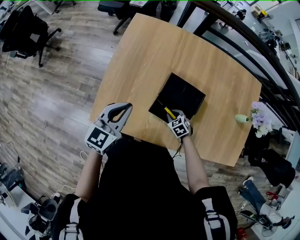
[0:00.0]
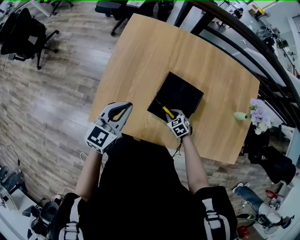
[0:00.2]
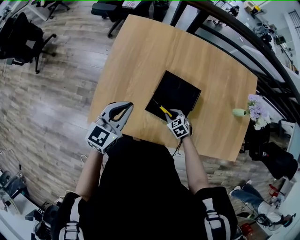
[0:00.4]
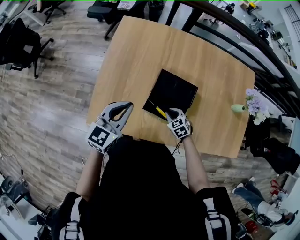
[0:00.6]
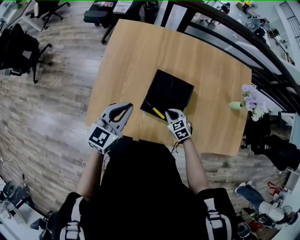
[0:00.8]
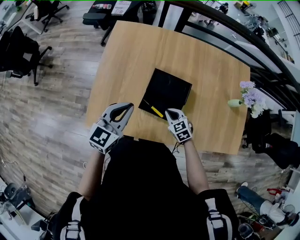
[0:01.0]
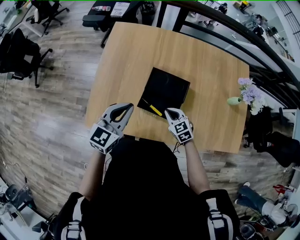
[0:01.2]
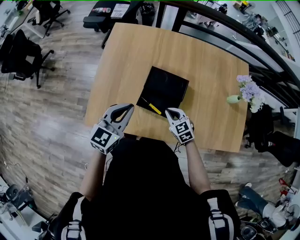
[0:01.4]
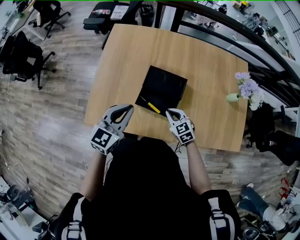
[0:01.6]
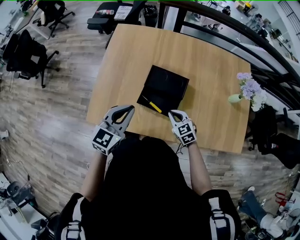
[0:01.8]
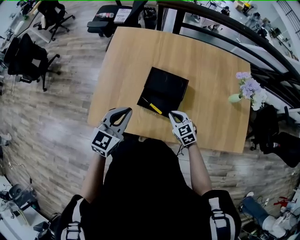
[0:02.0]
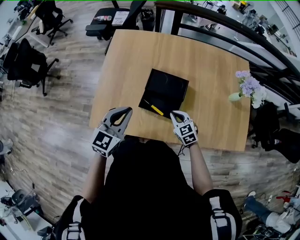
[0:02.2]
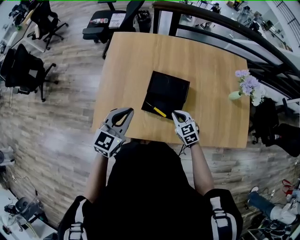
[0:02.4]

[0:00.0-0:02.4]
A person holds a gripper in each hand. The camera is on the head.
0:00.0 to 0:01.2: The right gripper goes roughly 10 cm upward, and turns by about 20 degrees. Meanwhile the left gripper heads to the right, covering roughly 10 cm.
0:01.2 to 0:02.4: The grippers move only a little.

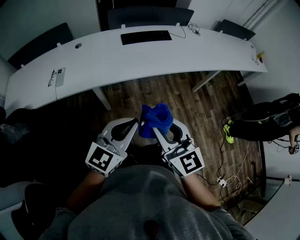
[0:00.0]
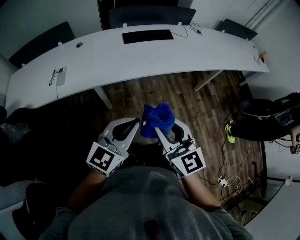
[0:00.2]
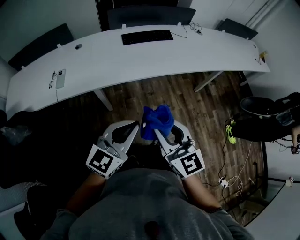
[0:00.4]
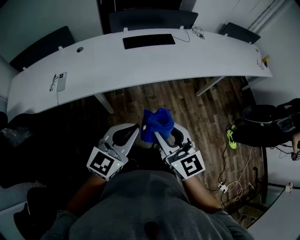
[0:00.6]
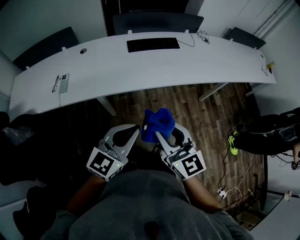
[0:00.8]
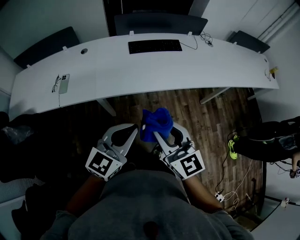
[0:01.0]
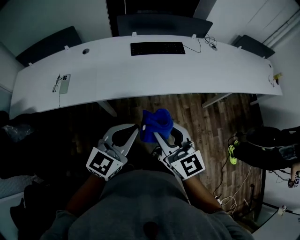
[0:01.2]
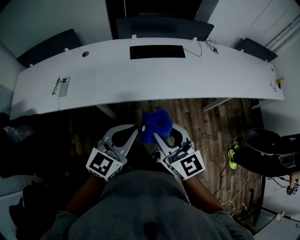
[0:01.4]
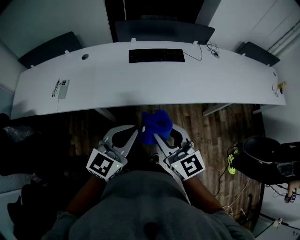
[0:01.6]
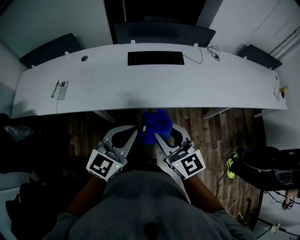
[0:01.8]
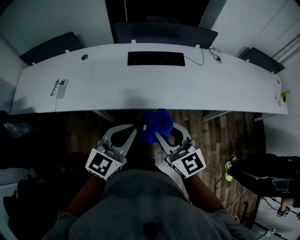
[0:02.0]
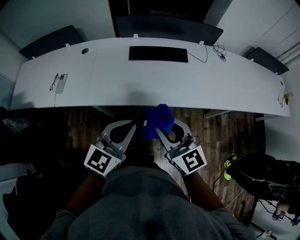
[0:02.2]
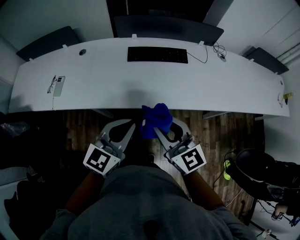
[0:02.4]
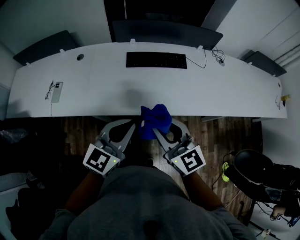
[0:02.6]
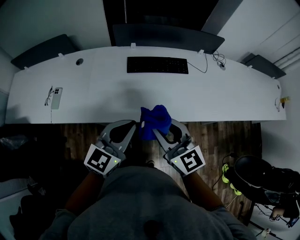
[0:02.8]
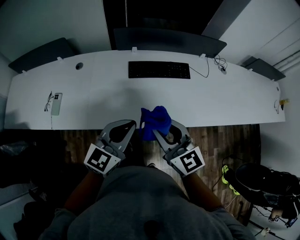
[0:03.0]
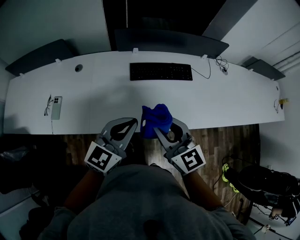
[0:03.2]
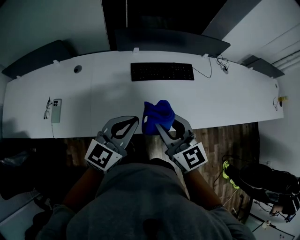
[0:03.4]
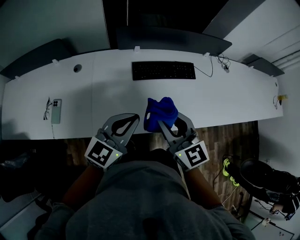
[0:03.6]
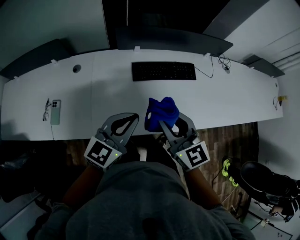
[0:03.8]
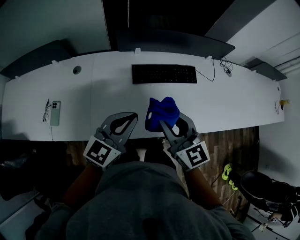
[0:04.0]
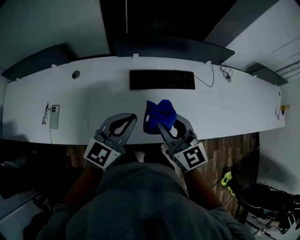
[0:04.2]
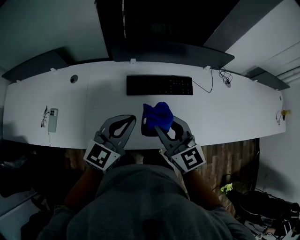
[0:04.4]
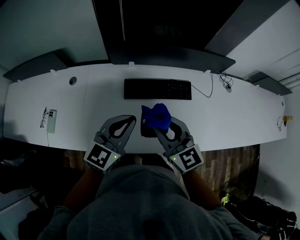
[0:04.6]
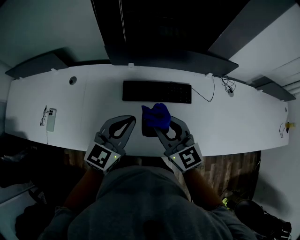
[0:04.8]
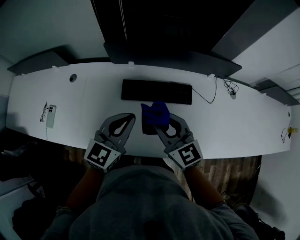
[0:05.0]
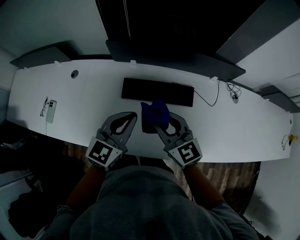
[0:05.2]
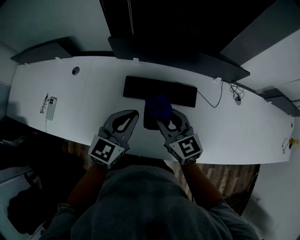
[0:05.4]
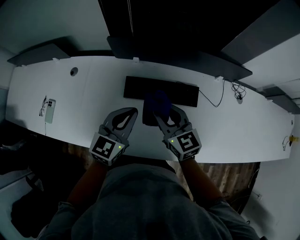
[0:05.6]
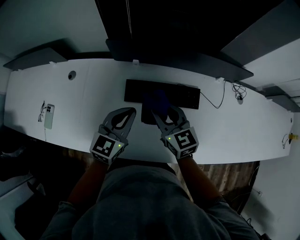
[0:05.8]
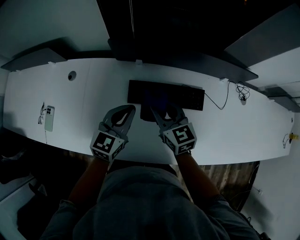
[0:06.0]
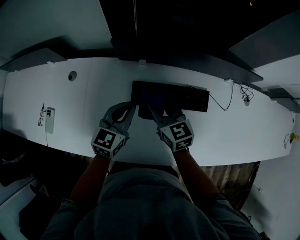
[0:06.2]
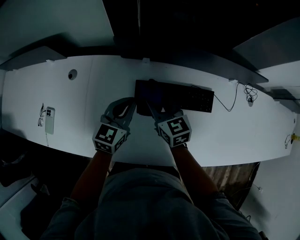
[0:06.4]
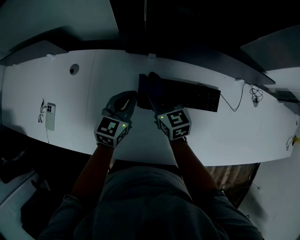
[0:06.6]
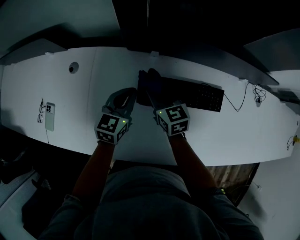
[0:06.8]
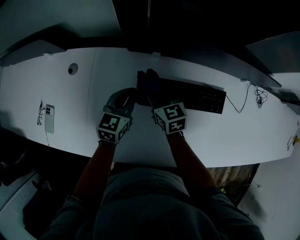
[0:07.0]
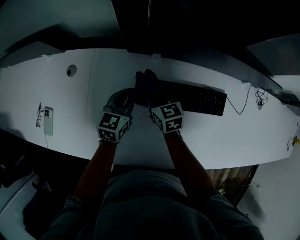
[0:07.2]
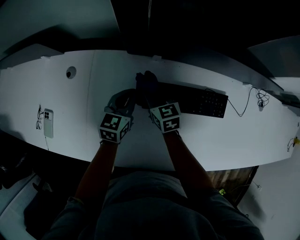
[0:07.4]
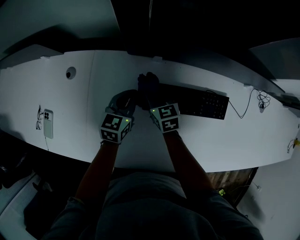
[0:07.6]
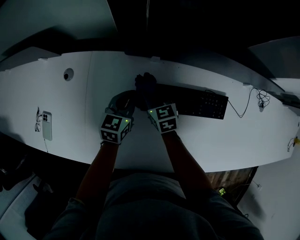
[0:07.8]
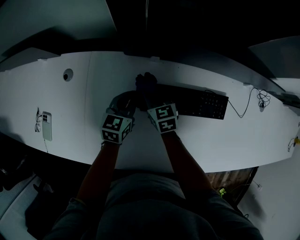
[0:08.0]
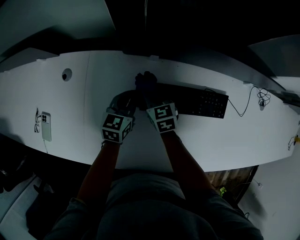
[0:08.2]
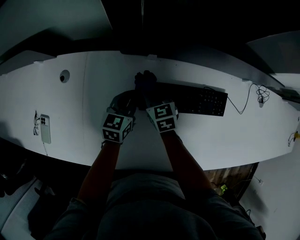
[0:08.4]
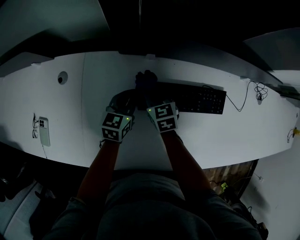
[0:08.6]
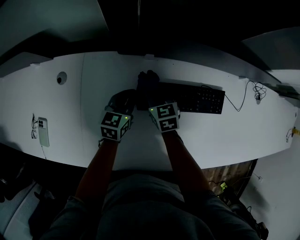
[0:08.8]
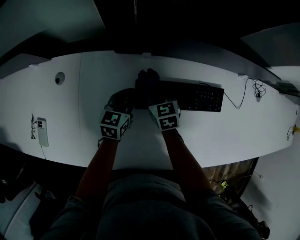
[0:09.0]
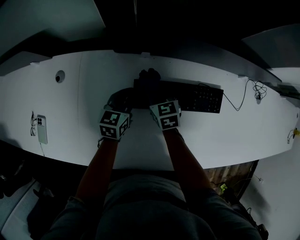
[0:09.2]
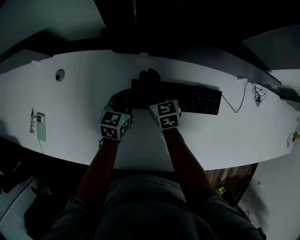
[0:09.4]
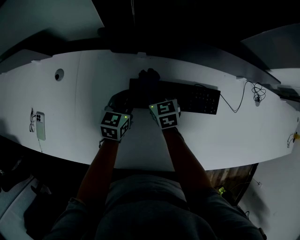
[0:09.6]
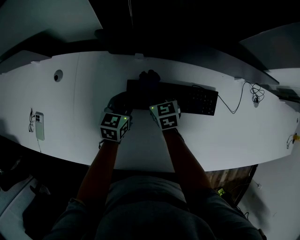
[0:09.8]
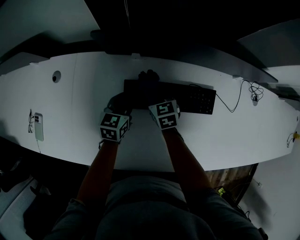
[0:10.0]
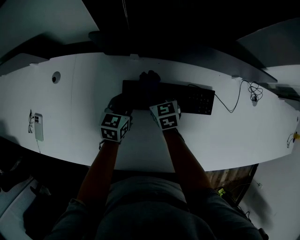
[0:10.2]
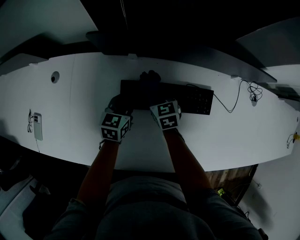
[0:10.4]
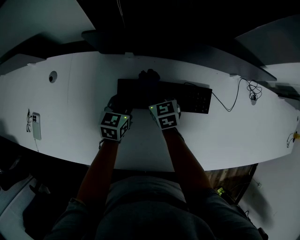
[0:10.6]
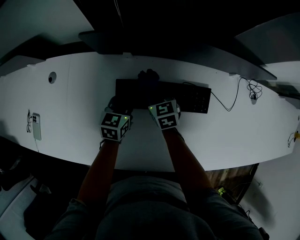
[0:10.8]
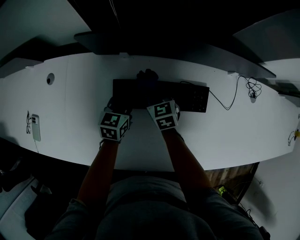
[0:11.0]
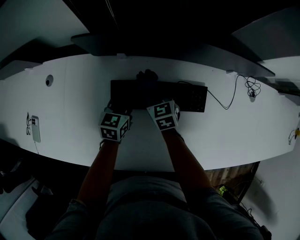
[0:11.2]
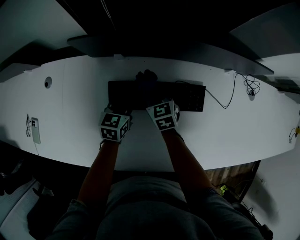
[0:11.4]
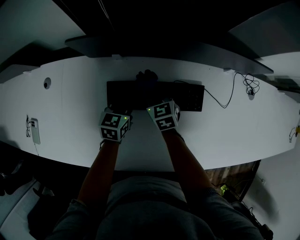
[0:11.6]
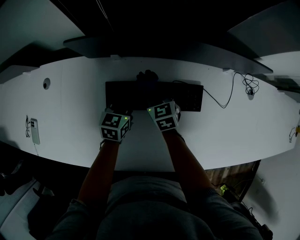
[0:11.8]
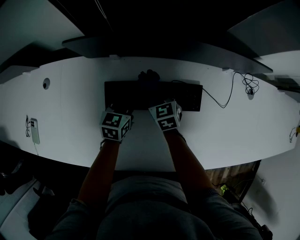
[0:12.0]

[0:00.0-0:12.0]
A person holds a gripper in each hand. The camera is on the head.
0:00.0 to 0:01.6: Both grippers travel together forward, about 20 cm.
0:01.6 to 0:03.0: The two grippers go some 20 cm forward.
0:03.0 to 0:04.4: Both grippers travel together forward, about 15 cm.
0:04.4 to 0:06.0: Both grippers move forward and downward, approximately 20 cm.
0:06.0 to 0:07.6: The two grippers go roughly 25 cm downward, forward and to the left.
0:07.6 to 0:09.0: The grippers make only small movements.
0:09.0 to 0:10.4: Both grippers travel together to the right, roughly 5 cm.
0:10.4 to 0:12.0: Both grippers move to the right, about 5 cm.

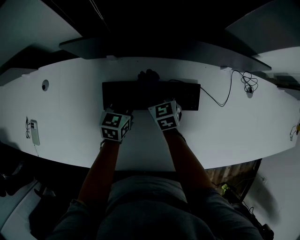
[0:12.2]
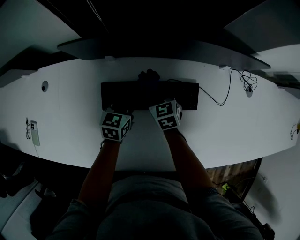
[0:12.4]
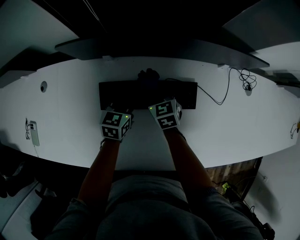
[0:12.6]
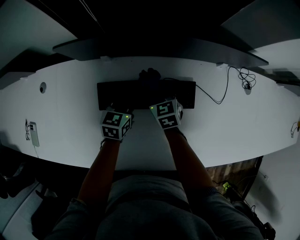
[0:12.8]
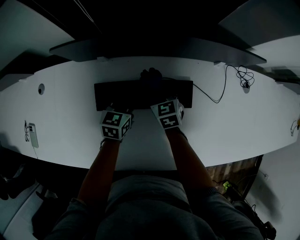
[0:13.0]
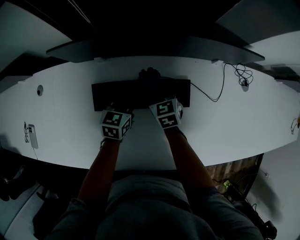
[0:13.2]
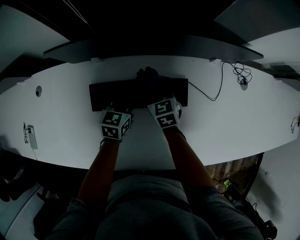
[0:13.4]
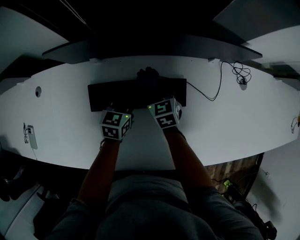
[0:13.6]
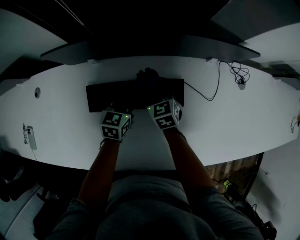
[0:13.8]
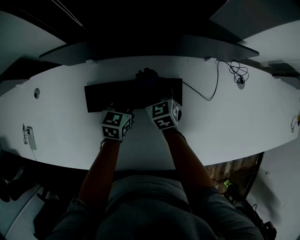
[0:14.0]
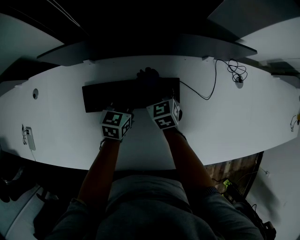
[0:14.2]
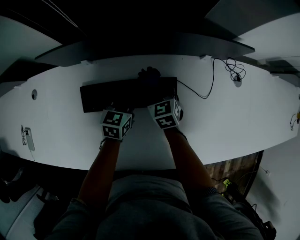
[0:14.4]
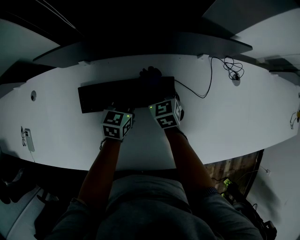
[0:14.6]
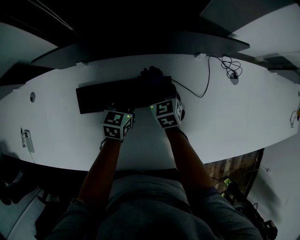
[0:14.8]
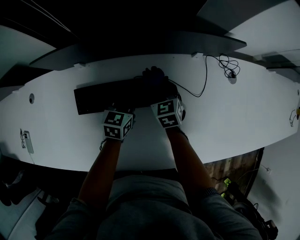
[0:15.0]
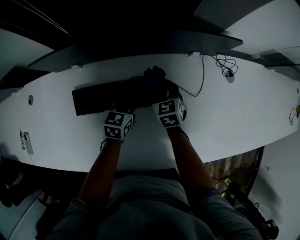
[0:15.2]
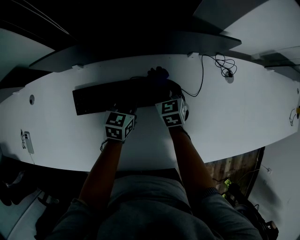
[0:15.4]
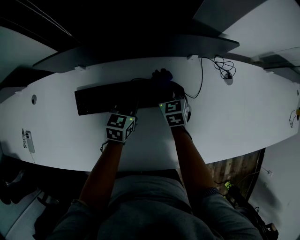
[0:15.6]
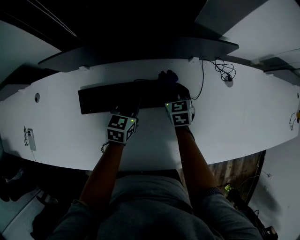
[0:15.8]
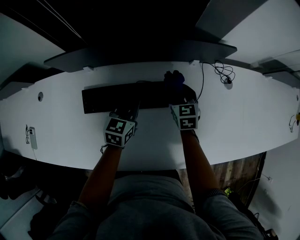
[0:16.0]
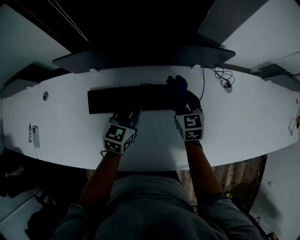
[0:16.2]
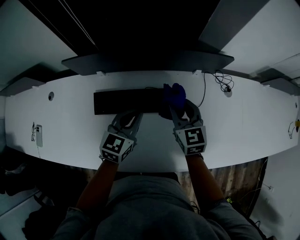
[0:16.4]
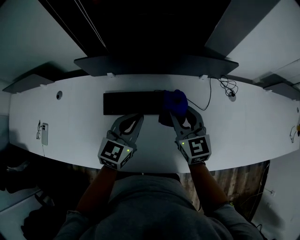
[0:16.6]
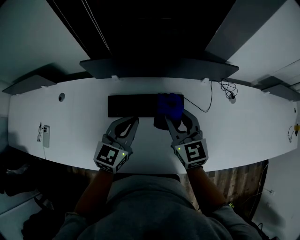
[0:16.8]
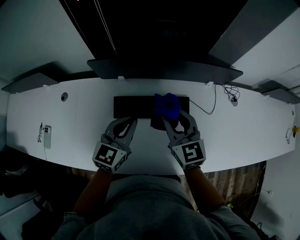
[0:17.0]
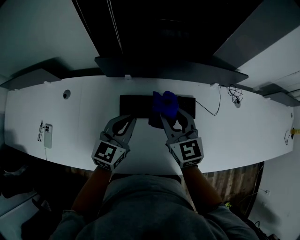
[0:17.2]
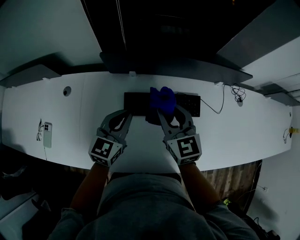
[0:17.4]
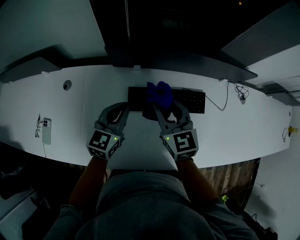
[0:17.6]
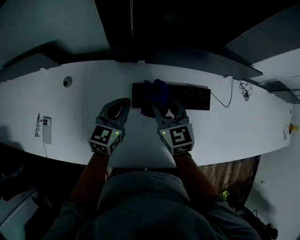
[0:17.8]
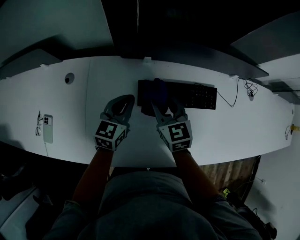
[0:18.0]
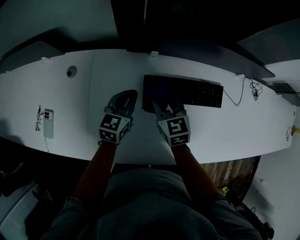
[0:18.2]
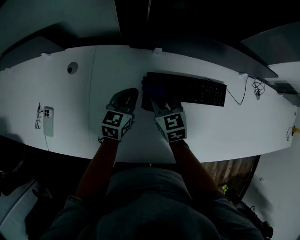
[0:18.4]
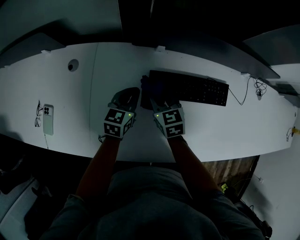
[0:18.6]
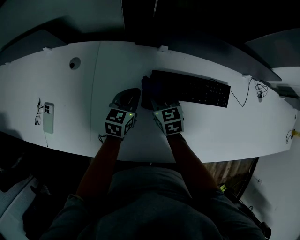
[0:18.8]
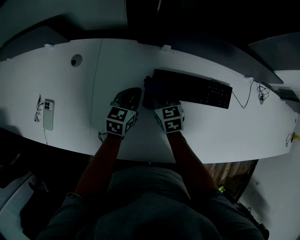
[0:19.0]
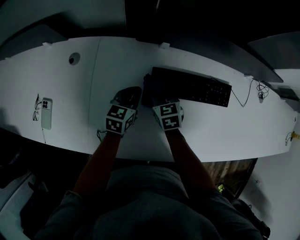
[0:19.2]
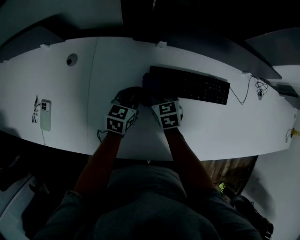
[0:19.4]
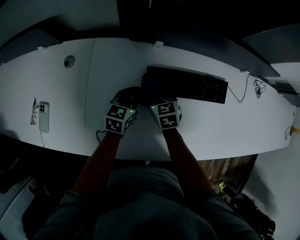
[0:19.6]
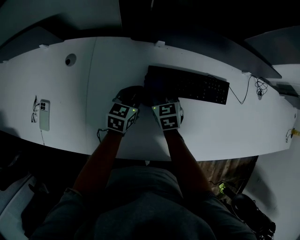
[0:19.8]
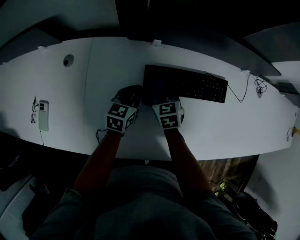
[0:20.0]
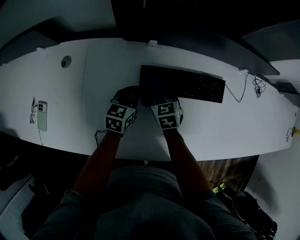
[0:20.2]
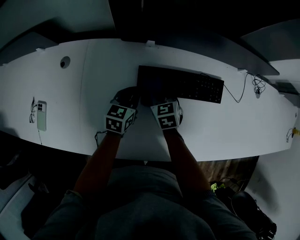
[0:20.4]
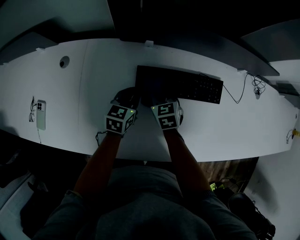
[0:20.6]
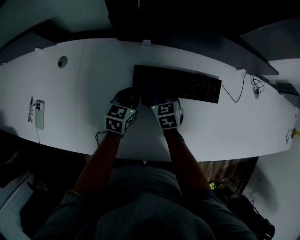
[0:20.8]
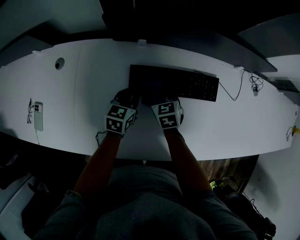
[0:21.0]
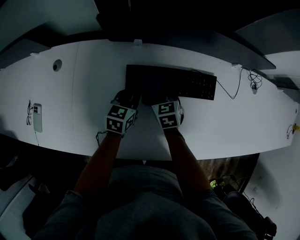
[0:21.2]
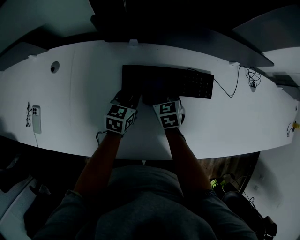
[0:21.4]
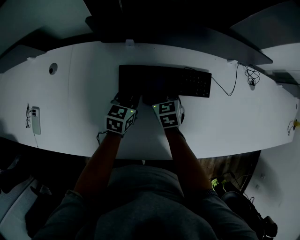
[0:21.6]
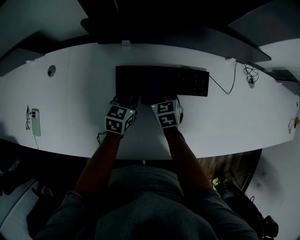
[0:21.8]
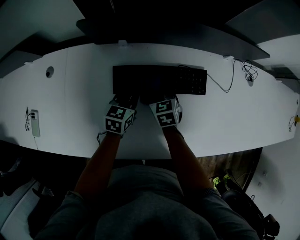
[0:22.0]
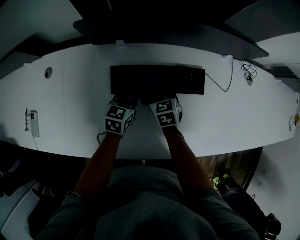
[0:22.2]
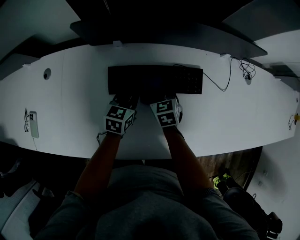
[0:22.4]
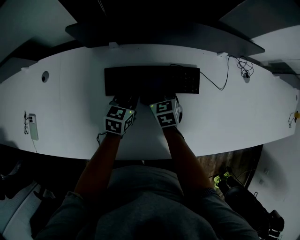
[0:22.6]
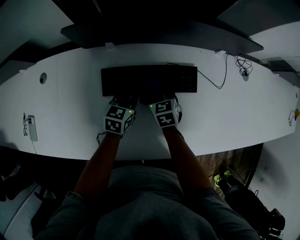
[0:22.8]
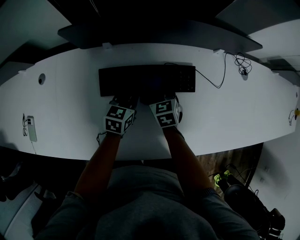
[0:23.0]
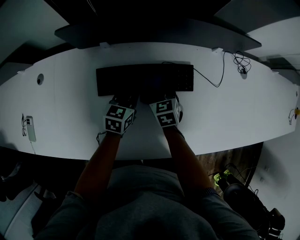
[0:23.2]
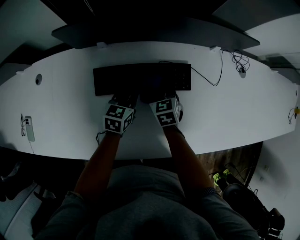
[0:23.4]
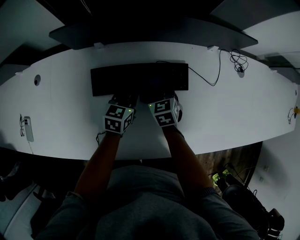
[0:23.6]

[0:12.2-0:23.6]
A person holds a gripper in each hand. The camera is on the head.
0:12.2 to 0:13.6: Both grippers travel together to the right, roughly 5 cm.
0:13.6 to 0:15.0: The grippers both shift to the right by about 10 cm.
0:15.0 to 0:16.4: The left gripper heads upward and backward, covering some 20 cm. Meanwhile the right gripper goes about 15 cm upward.
0:16.4 to 0:17.8: Both grippers travel together to the left, about 30 cm.
0:17.8 to 0:19.4: The grippers both shift downward by approximately 15 cm. The right gripper rotates approximately 20 degrees.
0:19.4 to 0:20.8: Both grippers travel together to the right, about 5 cm.
0:20.8 to 0:22.2: Both grippers move to the right, about 10 cm.
0:22.2 to 0:23.6: The two grippers go roughly 10 cm to the right.
